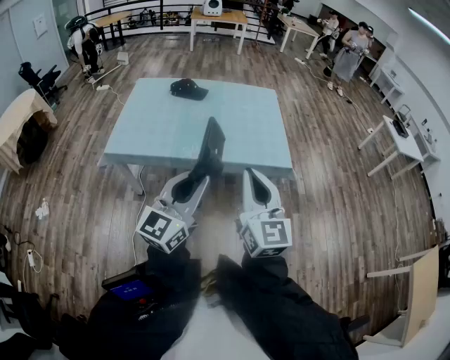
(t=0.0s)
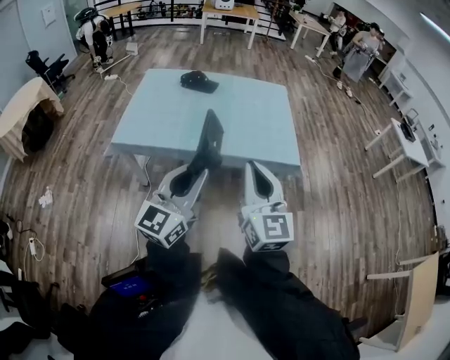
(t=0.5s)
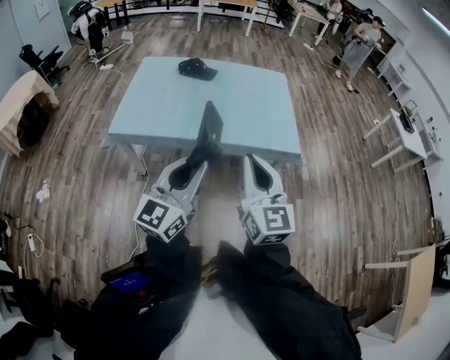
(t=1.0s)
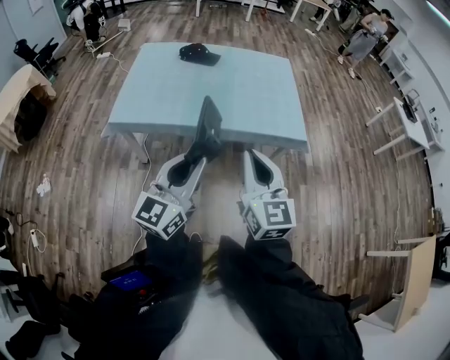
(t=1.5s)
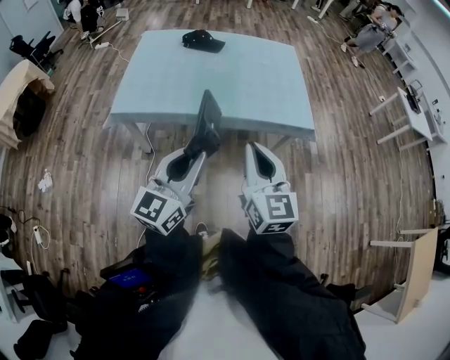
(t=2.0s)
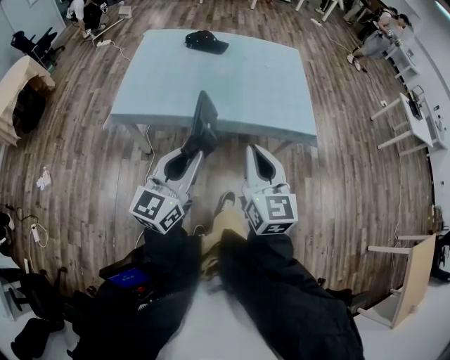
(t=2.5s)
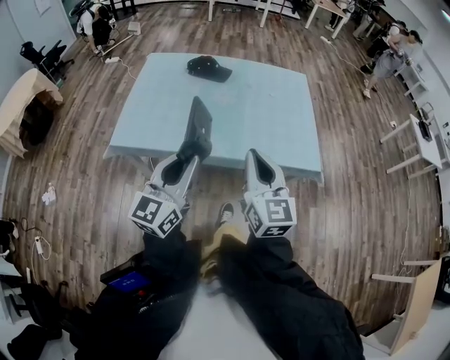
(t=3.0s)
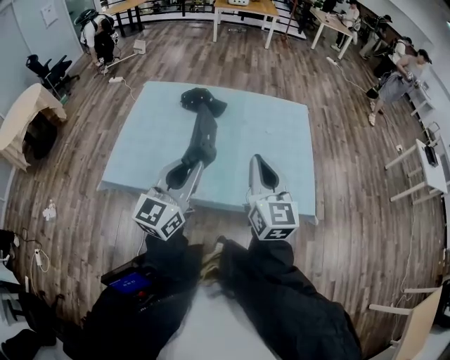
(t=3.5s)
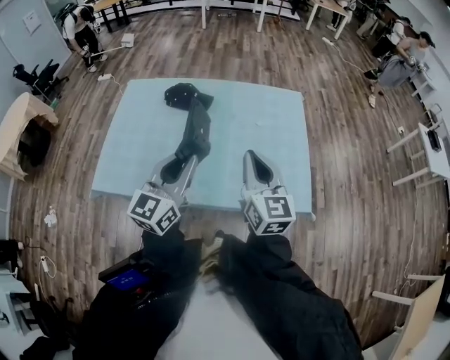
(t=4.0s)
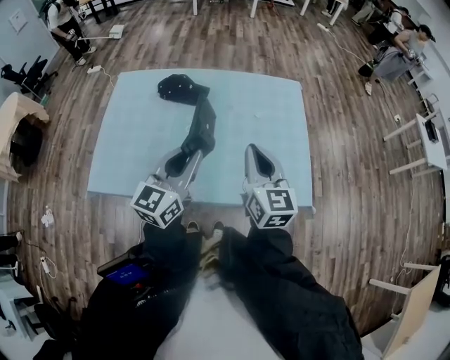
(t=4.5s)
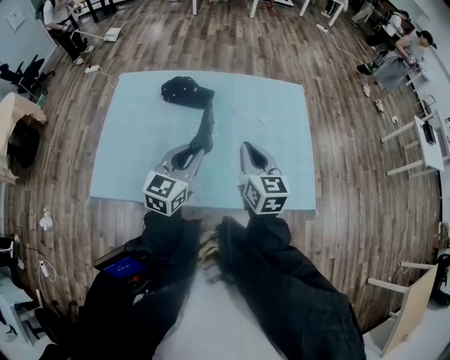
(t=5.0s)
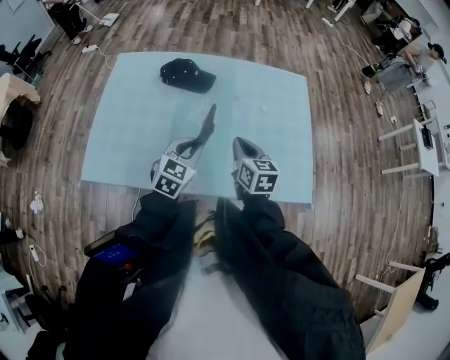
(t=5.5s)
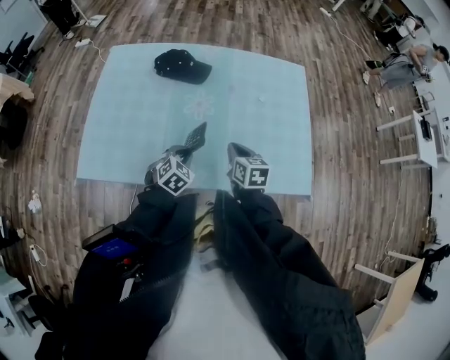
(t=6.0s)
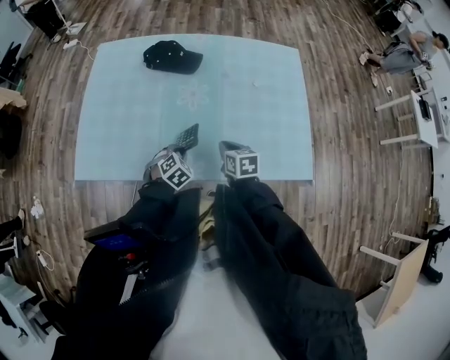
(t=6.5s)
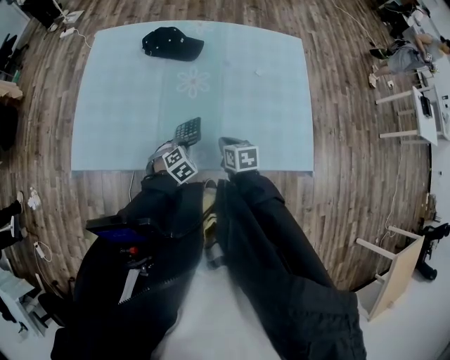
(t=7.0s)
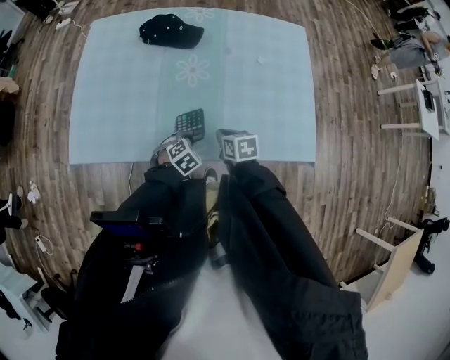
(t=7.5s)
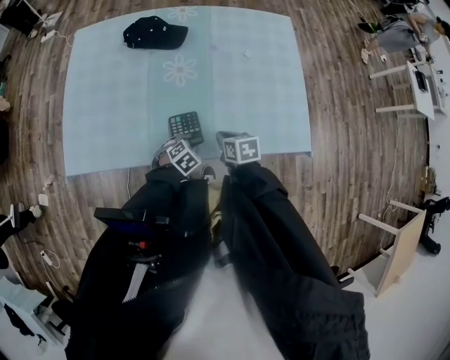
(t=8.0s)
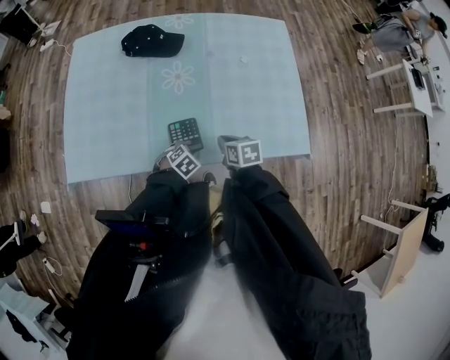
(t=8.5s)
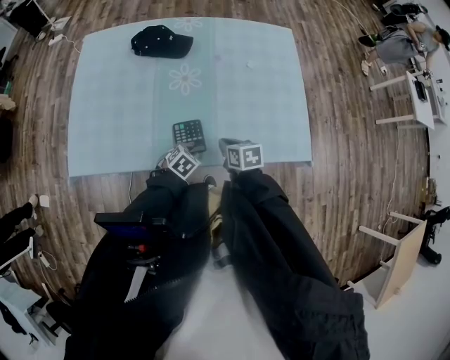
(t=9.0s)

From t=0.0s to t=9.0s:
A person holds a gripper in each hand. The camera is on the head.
From t=0.0s to t=2.0s: The grippers both shift to the left and downward by about 10 cm.
From t=2.0s to t=4.5s: The two grippers travel together, forward, approximately 40 cm.
From t=4.5s to t=7.0s: The grippers both shift downward by approximately 35 cm. The right gripper tips its fingers downward by some 40 degrees. The left gripper tilts its fingers about 60 degrees downward.
From t=7.0s to t=9.0s: The left gripper changes place by roughly 5 cm.

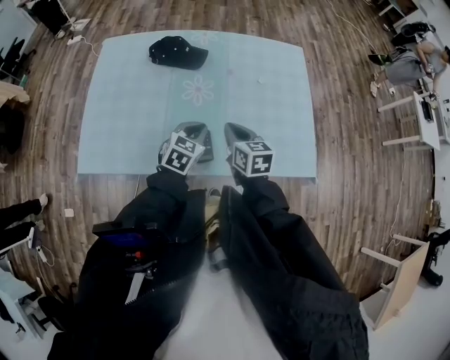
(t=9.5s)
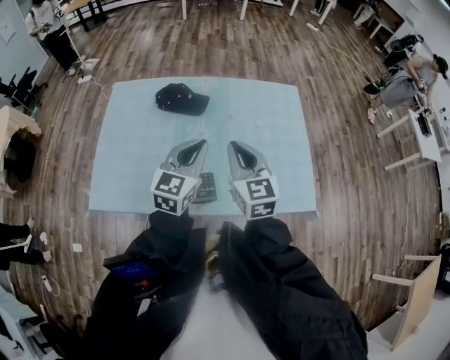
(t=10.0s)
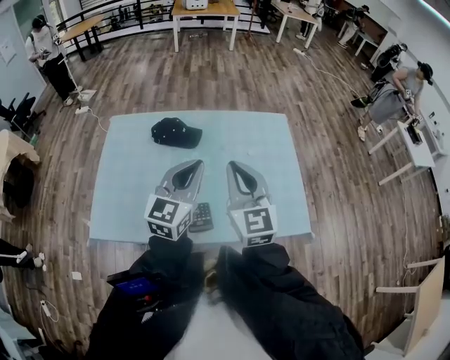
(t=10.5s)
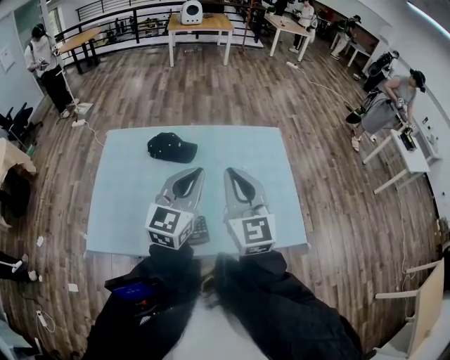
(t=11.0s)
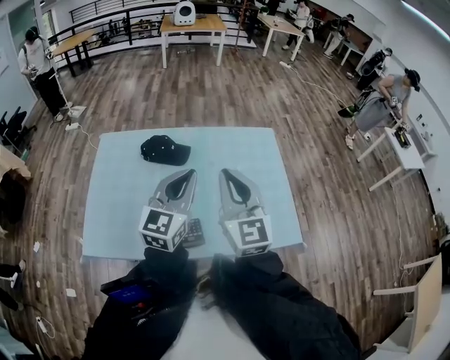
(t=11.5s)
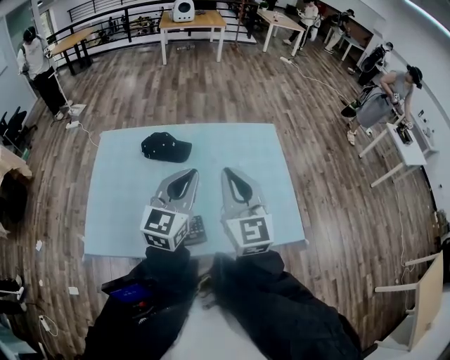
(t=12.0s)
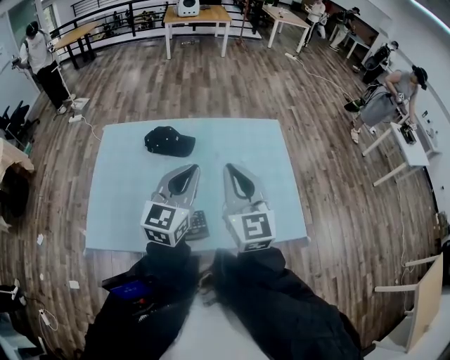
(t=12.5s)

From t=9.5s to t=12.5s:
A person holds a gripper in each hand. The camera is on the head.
From t=9.5s to t=11.0s: The grippers both shift upward by approximately 30 cm. The left gripper tilts its fingers approximately 40 degrees upward, while the right gripper tilts its fingers roughly 30 degrees upward.
From t=11.0s to t=12.5s: Both grippers stay put.

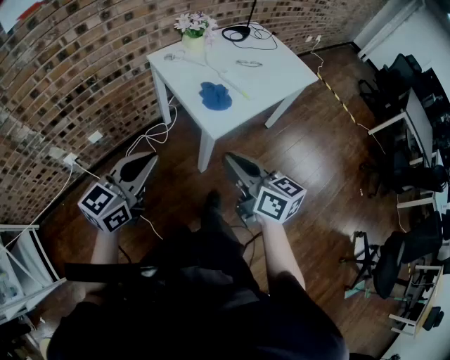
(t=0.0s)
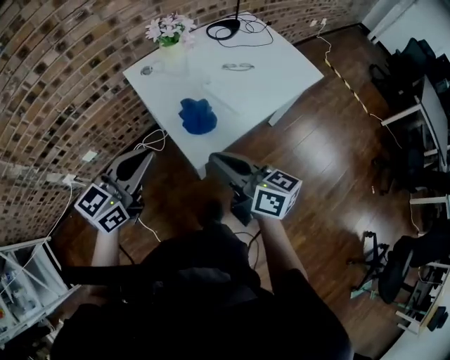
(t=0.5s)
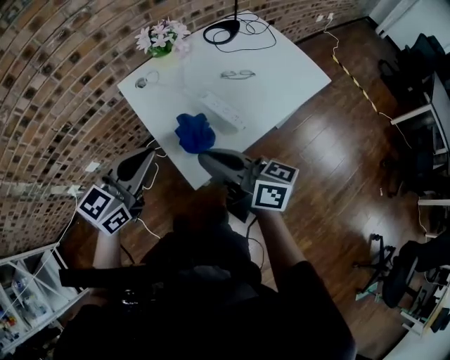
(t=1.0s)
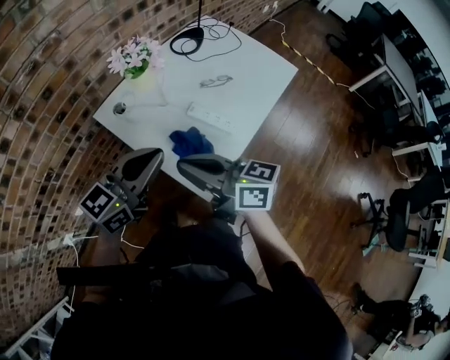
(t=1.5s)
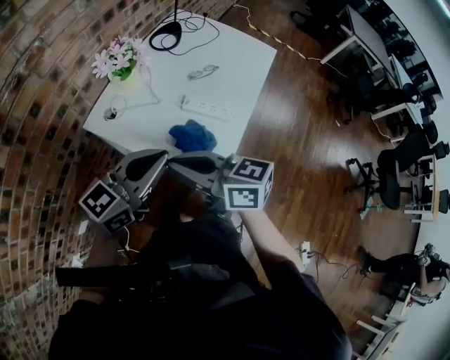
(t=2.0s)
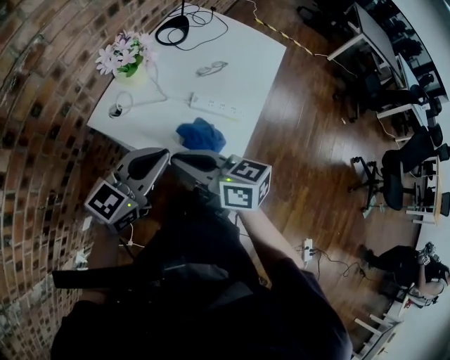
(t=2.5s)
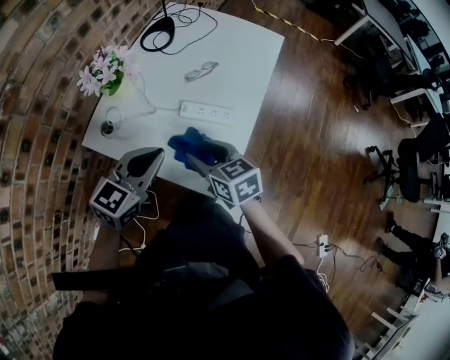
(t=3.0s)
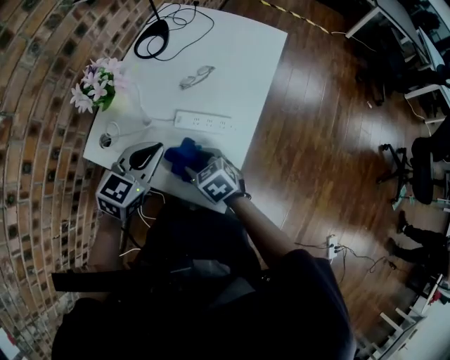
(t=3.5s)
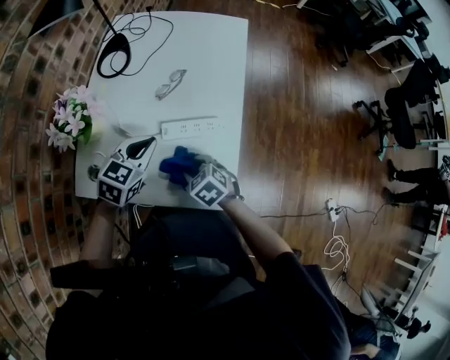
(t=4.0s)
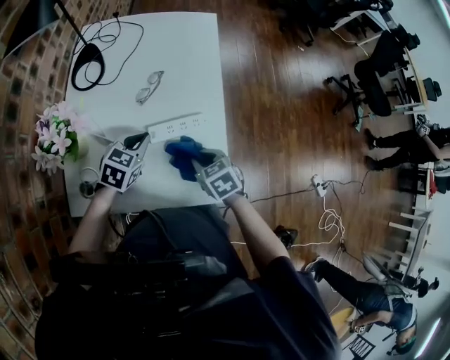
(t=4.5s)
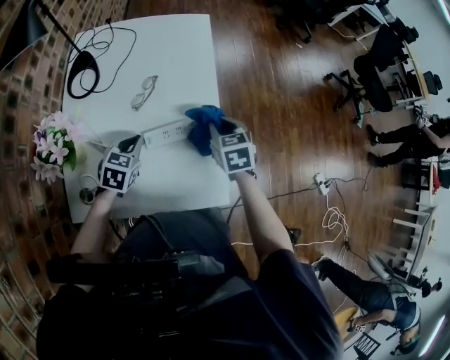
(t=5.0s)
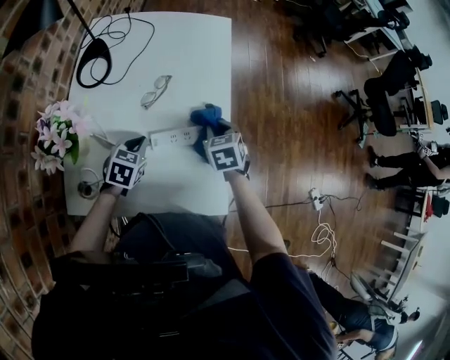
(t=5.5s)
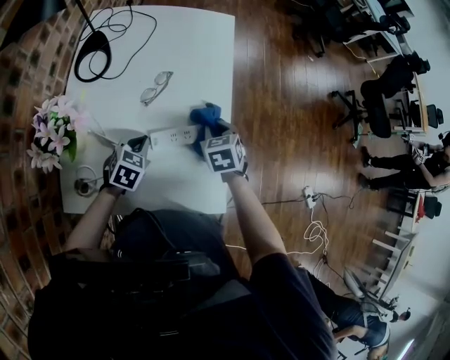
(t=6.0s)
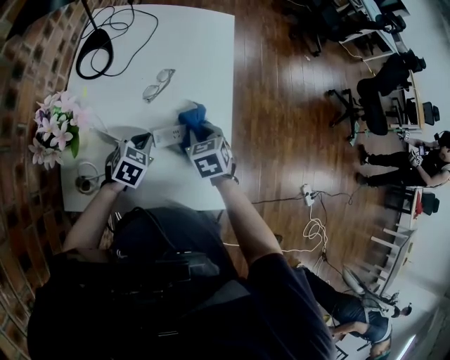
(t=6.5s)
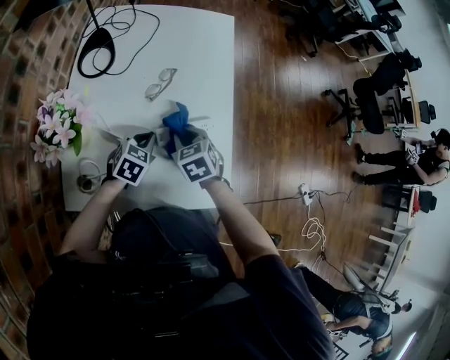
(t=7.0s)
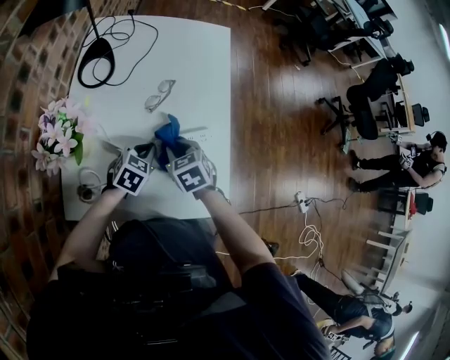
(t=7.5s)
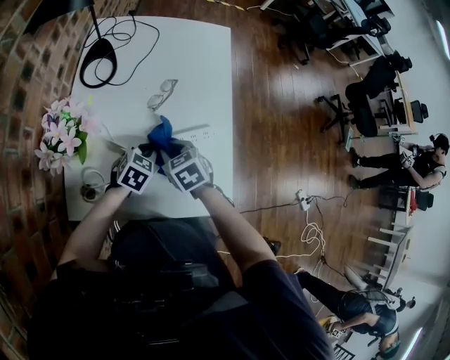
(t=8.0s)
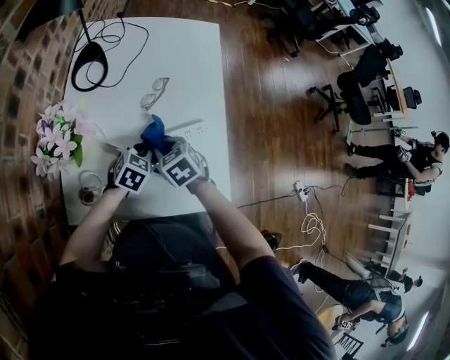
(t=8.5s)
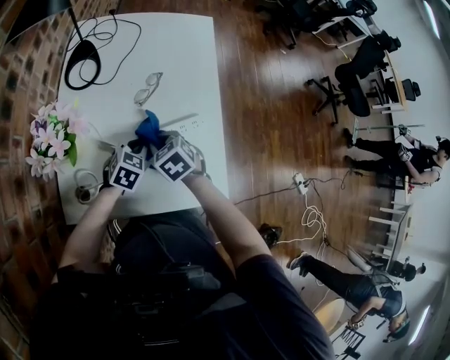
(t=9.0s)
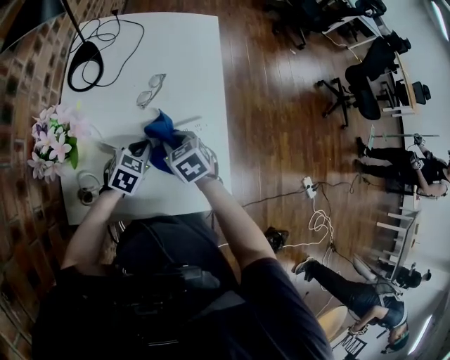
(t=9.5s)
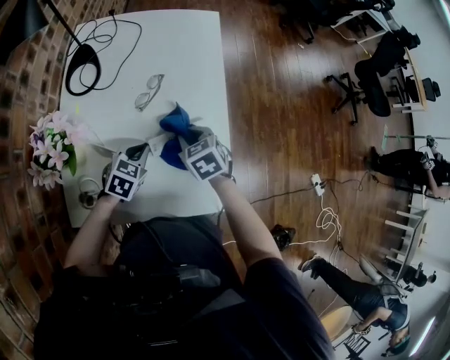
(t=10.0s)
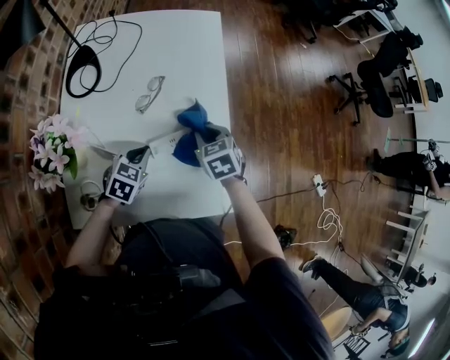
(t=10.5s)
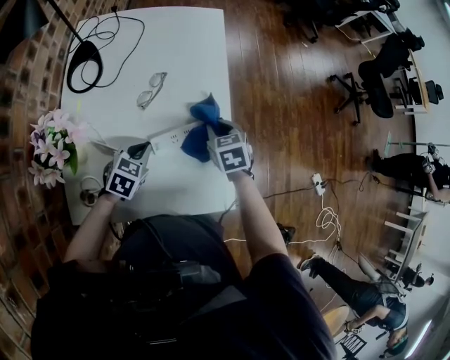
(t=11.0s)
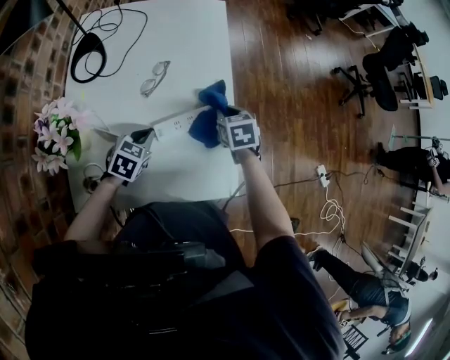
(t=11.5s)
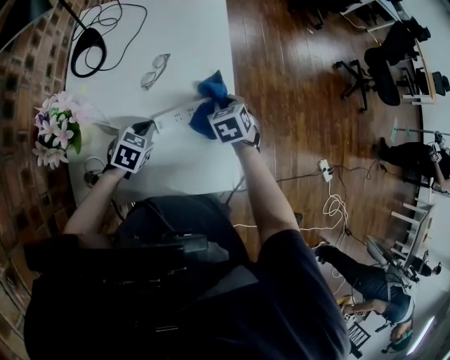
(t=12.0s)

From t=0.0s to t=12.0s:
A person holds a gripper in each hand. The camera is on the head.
From t=0.0s to t=2.0s: The left gripper moves some 30 cm, and turns by roughly 40 degrees. The right gripper ends up roughly 30 cm from where it was.
From t=2.0s to t=4.0s: The left gripper is displaced forward and downward by roughly 30 cm, and tilts its fingers about 40 degrees downward, while the right gripper shifts some 30 cm downward and forward, points its fingers roughly 50 degrees further downward, and opens.
From t=4.0s to t=6.0s: The left gripper moves downward, some 10 cm. The right gripper changes place by about 20 cm, turns by approximately 30 degrees, and closes its fingers.
From t=6.0s to t=8.0s: The right gripper goes approximately 20 cm to the left and backward.
From t=8.0s to t=10.0s: The right gripper travels to the right by roughly 10 cm.
From t=10.0s to t=12.0s: The right gripper goes approximately 10 cm to the right and forward.

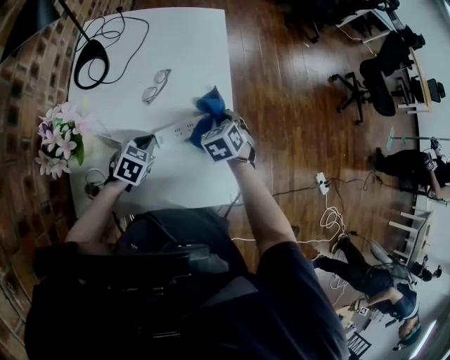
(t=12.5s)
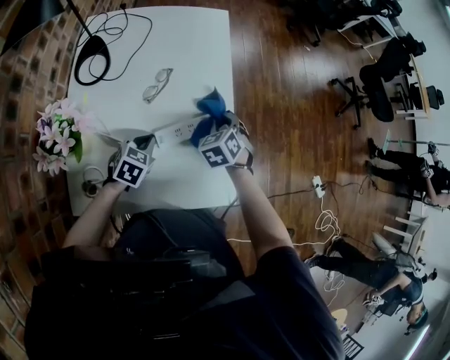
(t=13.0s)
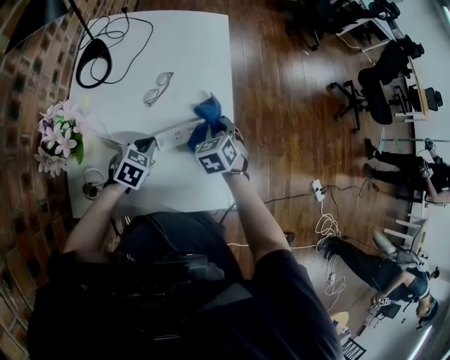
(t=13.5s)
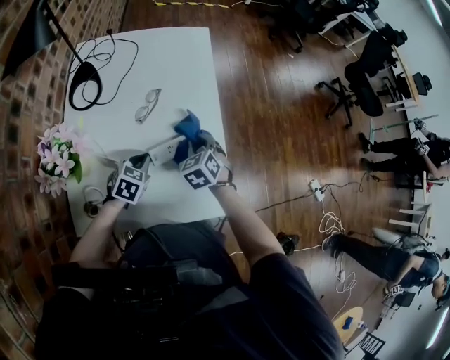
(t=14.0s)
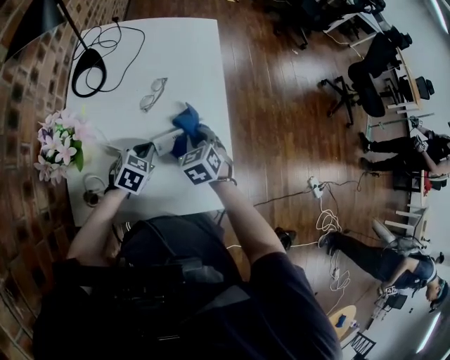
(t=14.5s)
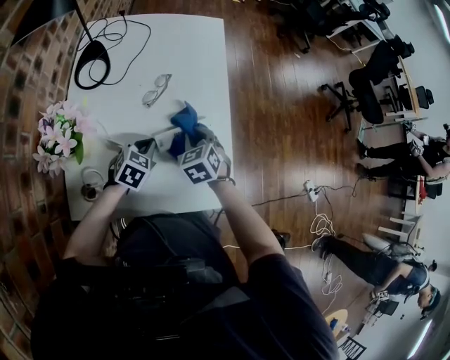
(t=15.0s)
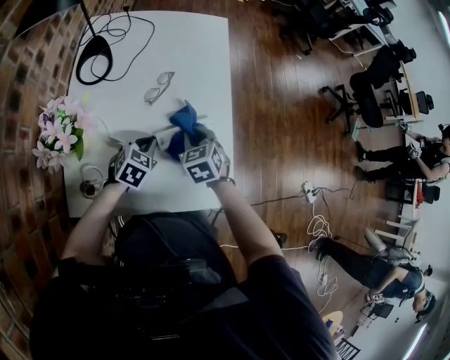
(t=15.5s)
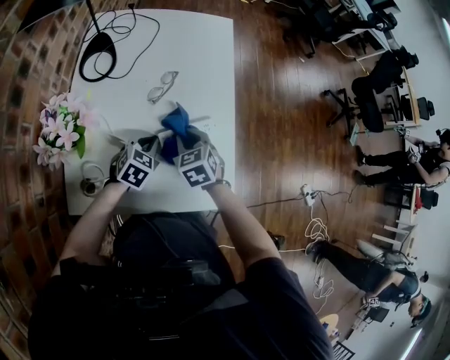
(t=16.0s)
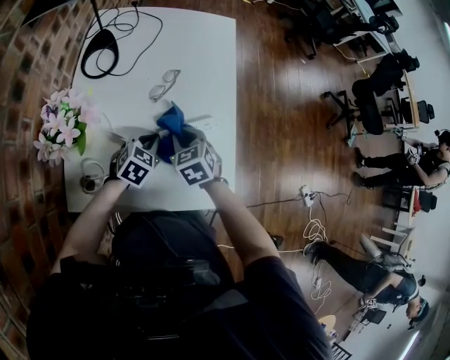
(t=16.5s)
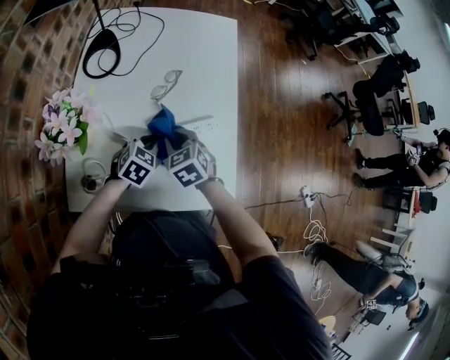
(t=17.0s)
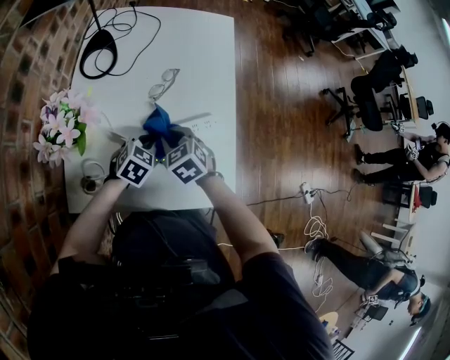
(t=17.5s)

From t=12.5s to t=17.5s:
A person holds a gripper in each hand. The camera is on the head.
From t=12.5s to t=15.0s: The right gripper heads to the left and backward, covering roughly 10 cm.
From t=15.0s to t=17.5s: The right gripper is displaced to the left by about 10 cm.
